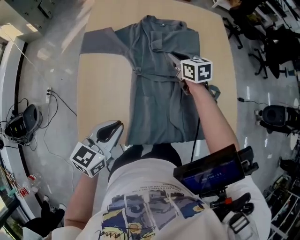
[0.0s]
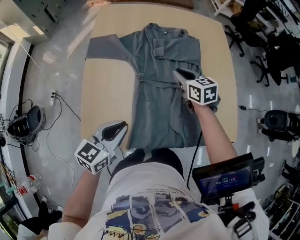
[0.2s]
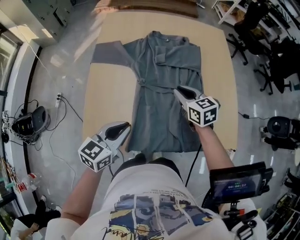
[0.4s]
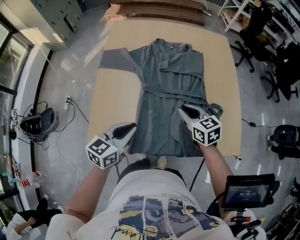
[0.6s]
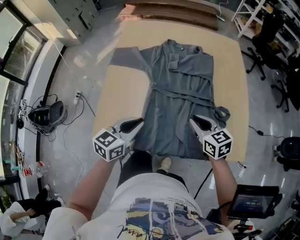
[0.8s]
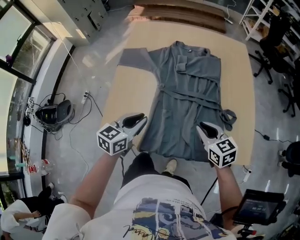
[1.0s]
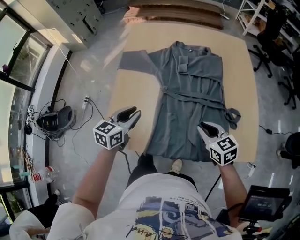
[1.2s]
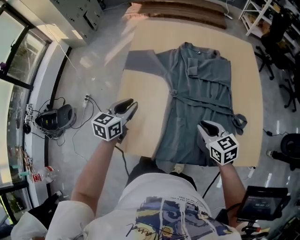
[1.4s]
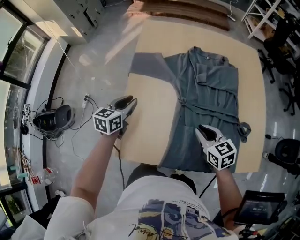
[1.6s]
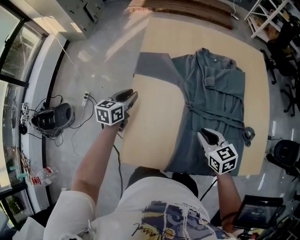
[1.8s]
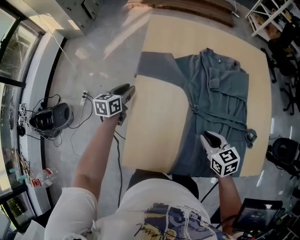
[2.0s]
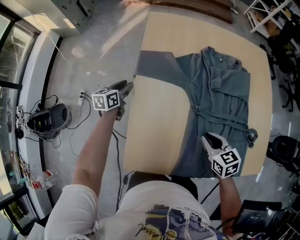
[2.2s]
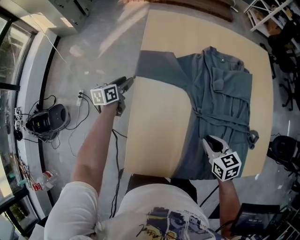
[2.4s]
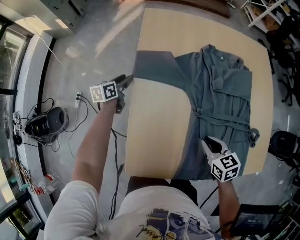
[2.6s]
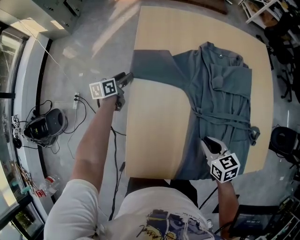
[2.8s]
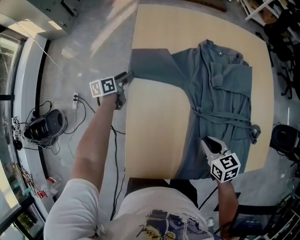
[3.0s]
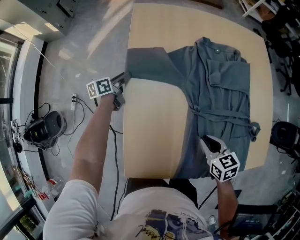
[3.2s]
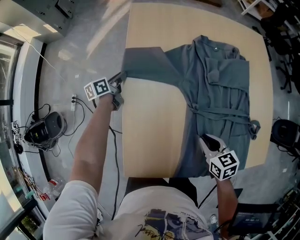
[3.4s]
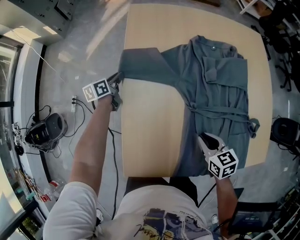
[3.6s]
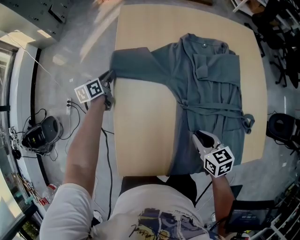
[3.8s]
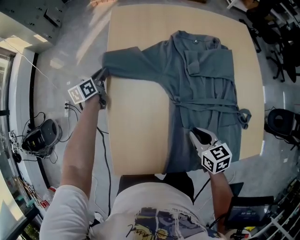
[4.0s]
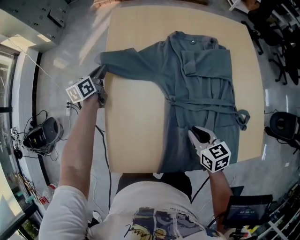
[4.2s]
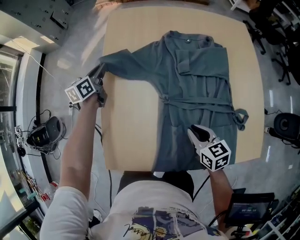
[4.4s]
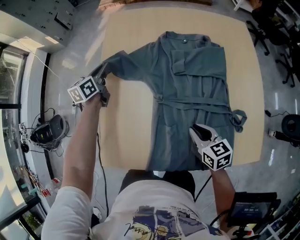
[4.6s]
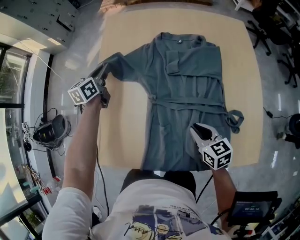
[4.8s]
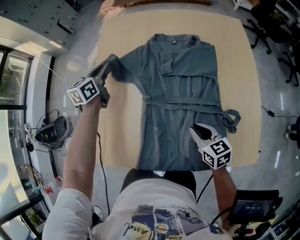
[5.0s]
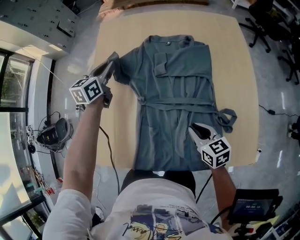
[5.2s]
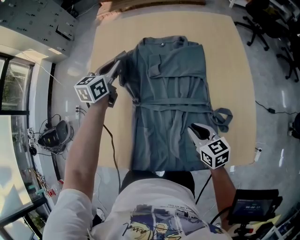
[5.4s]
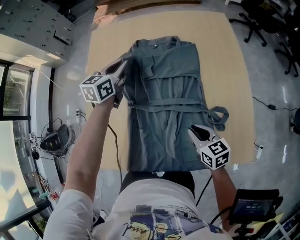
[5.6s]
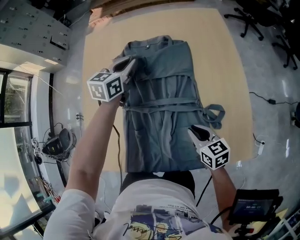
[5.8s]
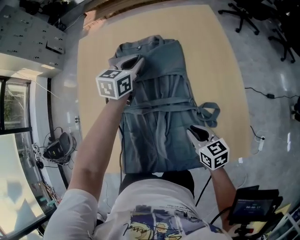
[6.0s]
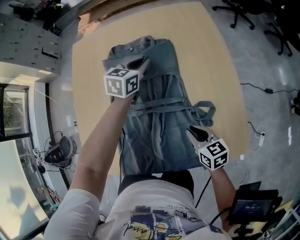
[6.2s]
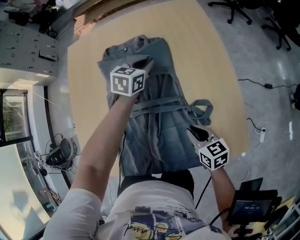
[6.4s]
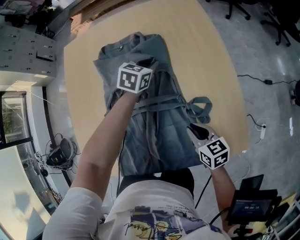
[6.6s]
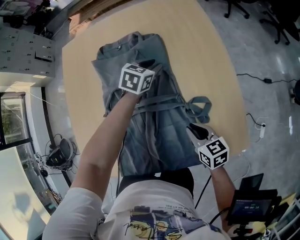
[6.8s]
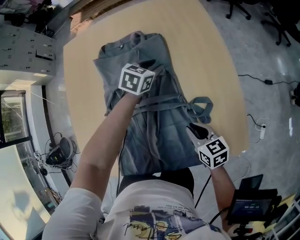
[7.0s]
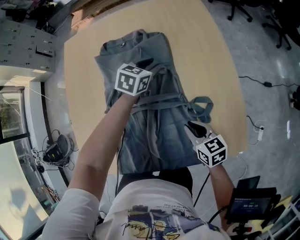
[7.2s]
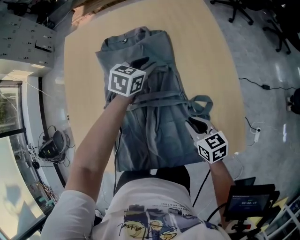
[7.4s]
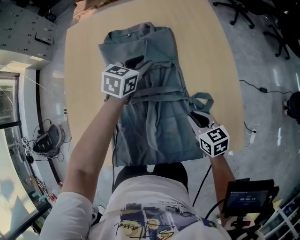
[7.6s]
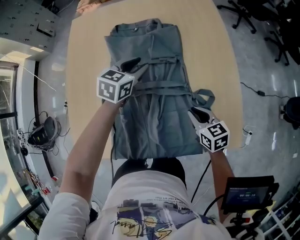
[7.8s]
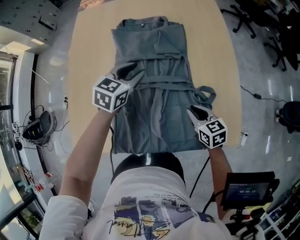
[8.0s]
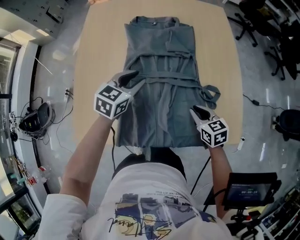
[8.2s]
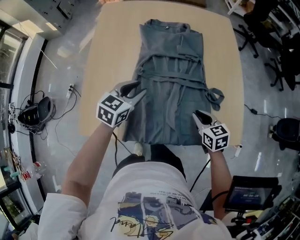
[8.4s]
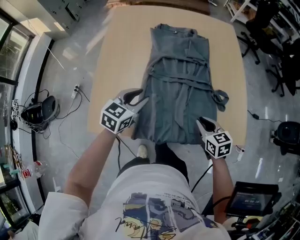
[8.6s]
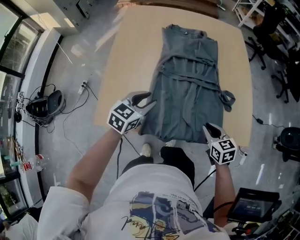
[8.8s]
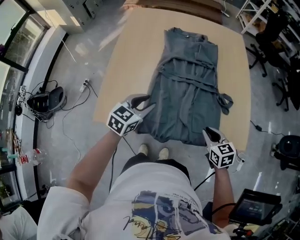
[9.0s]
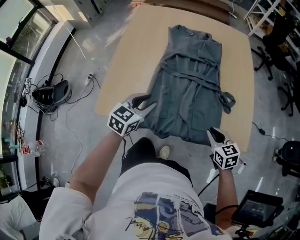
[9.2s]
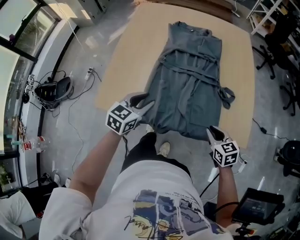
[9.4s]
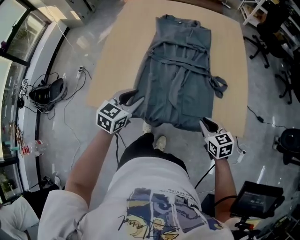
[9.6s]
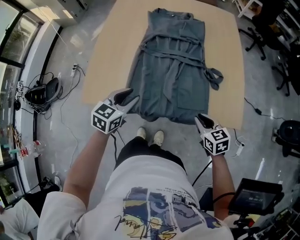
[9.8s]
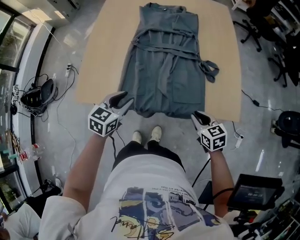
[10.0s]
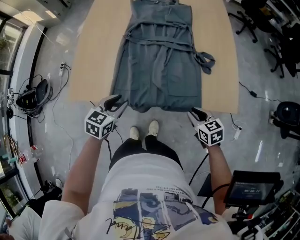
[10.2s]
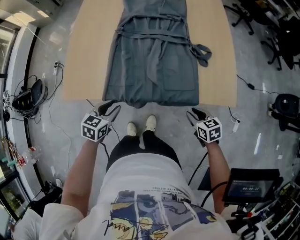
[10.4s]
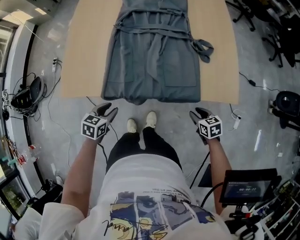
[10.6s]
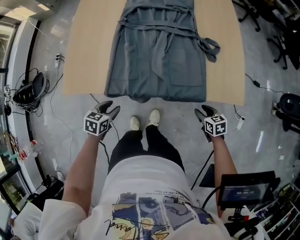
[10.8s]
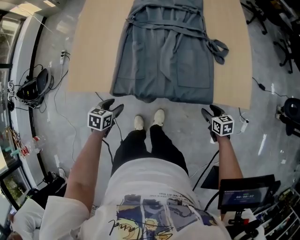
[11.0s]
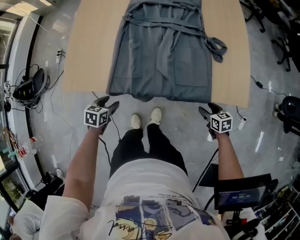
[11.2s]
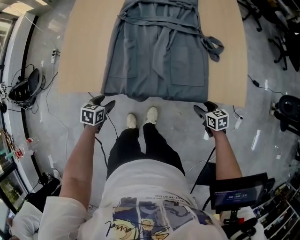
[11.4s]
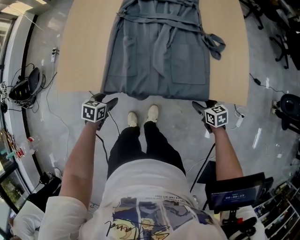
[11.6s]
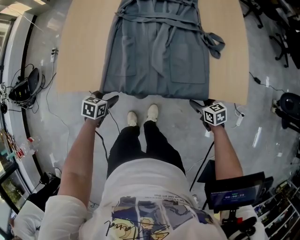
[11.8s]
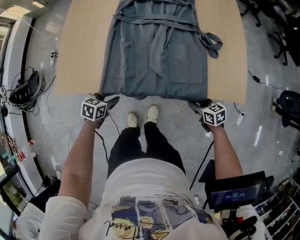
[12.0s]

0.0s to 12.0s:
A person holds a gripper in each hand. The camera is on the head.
0.0s to 1.6s: The right gripper is displaced backward by approximately 20 cm. The left gripper moves forward and to the left, roughly 25 cm.
1.6s to 3.0s: The left gripper heads forward and downward, covering roughly 25 cm, rotates some 30 degrees, and opens, while the right gripper shifts about 5 cm downward.
3.0s to 4.4s: The right gripper heads to the right, covering approximately 5 cm; the left gripper goes roughly 15 cm upward and to the right, changes its angle by approximately 20 degrees, and closes up.
4.4s to 6.0s: The left gripper is displaced to the right by approximately 40 cm, and swivels some 30 degrees; the right gripper moves to the right, about 20 cm.
6.0s to 7.6s: The left gripper opens.
7.6s to 9.0s: The left gripper goes approximately 35 cm backward and to the left. Meanwhile the right gripper travels backward and to the left by some 15 cm.
9.0s to 10.4s: The left gripper travels backward and downward by approximately 20 cm. Meanwhile the right gripper shifts roughly 20 cm backward, downward and to the right.
10.4s to 12.0s: Both grippers move downward, approximately 10 cm. The left gripper opens.

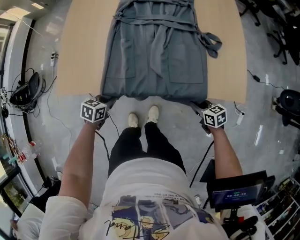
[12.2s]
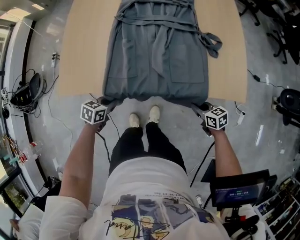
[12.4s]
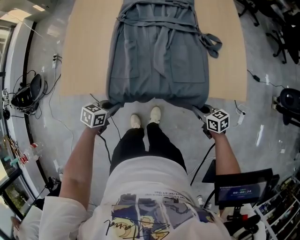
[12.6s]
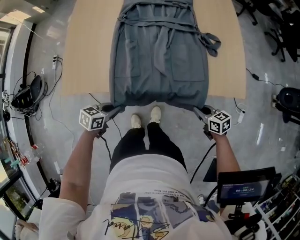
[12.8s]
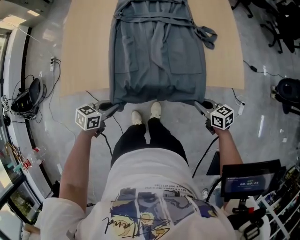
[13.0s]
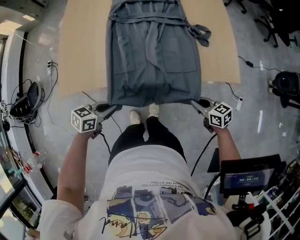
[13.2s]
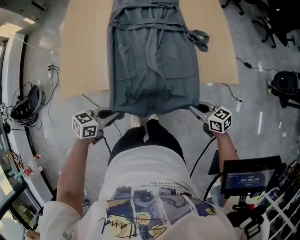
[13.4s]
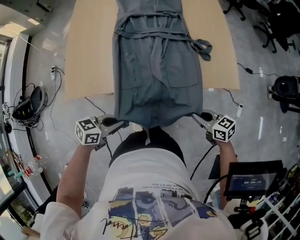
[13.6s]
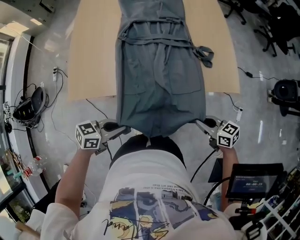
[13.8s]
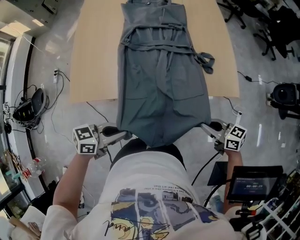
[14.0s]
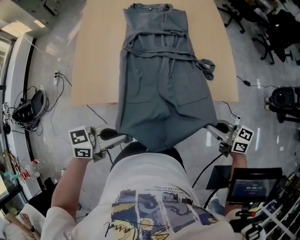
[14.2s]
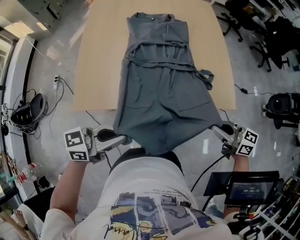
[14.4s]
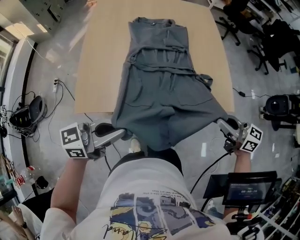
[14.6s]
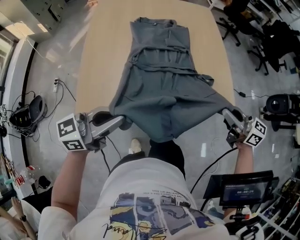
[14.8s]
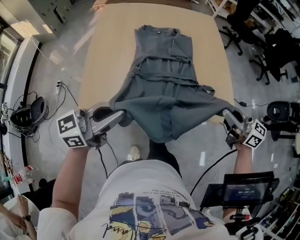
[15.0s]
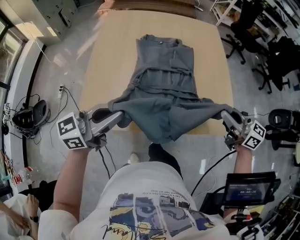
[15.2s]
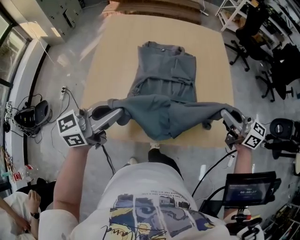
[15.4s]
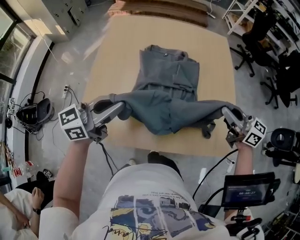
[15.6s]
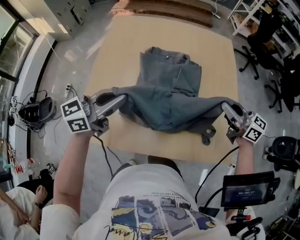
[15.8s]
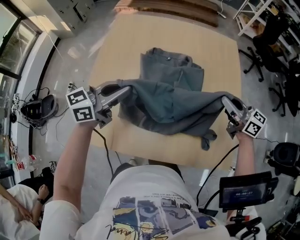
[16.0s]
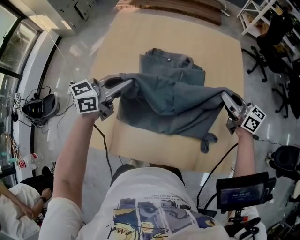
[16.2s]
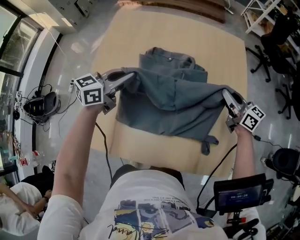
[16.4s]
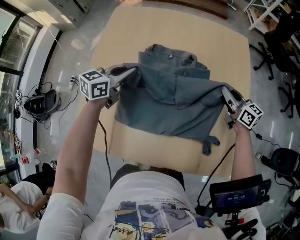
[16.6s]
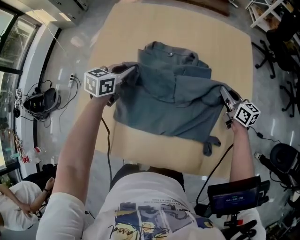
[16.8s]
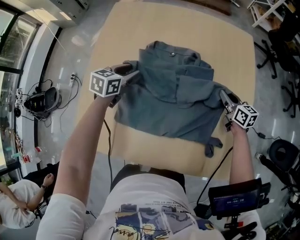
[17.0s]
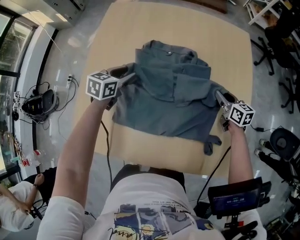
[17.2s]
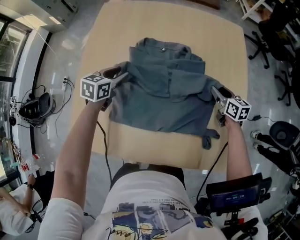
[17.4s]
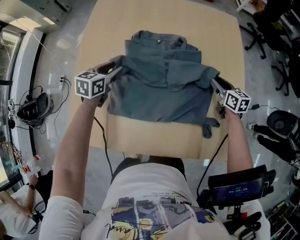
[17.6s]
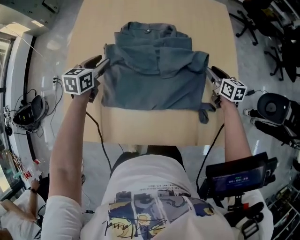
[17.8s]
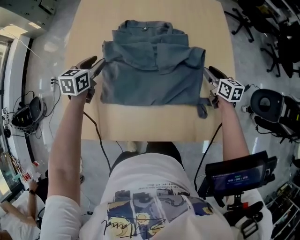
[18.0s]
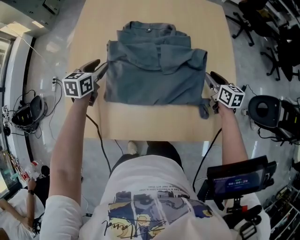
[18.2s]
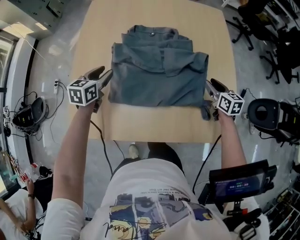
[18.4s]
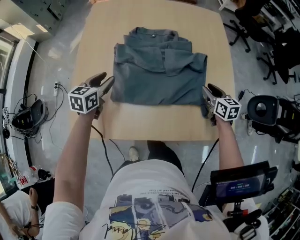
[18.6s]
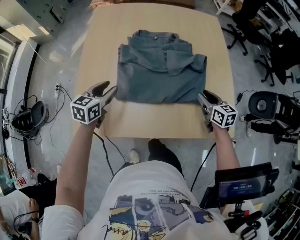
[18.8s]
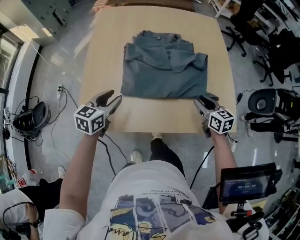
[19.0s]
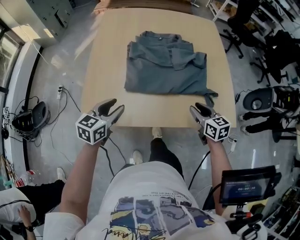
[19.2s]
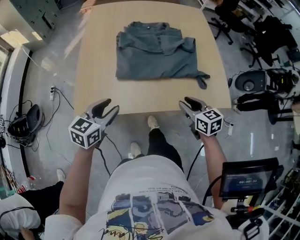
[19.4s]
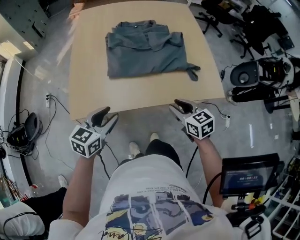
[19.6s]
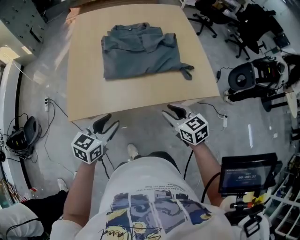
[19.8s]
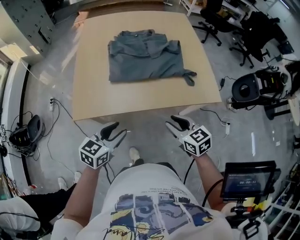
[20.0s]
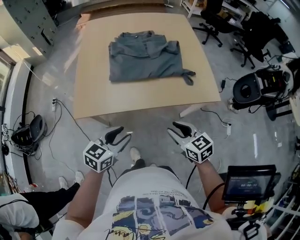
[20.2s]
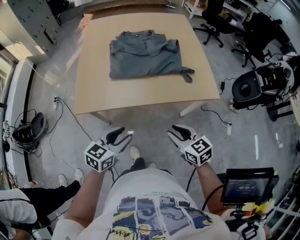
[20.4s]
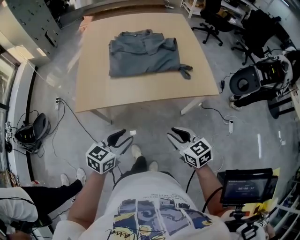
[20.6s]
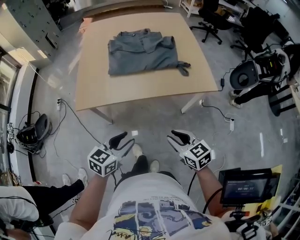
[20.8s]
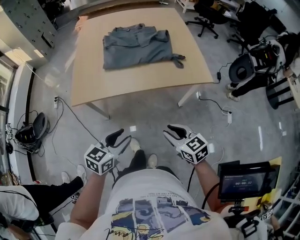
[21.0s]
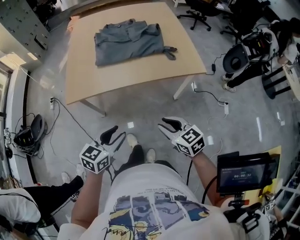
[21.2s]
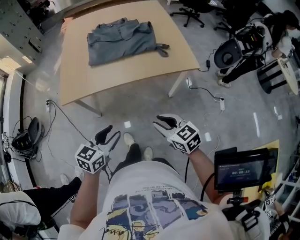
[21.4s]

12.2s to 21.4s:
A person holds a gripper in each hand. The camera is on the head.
12.2s to 13.8s: The grippers both shift upward by approximately 15 cm. The left gripper turns by about 30 degrees.
13.8s to 15.2s: The two grippers go roughly 25 cm upward. The right gripper swivels about 30 degrees. The left gripper swivels approximately 40 degrees.
15.2s to 16.8s: The grippers both shift forward and downward by some 40 cm. The left gripper tilts its fingers about 40 degrees downward.
16.8s to 18.4s: The right gripper moves backward, some 15 cm, rotates about 20 degrees, and opens its fingers; the left gripper moves backward and to the left, approximately 10 cm, and opens up.
18.4s to 19.8s: The left gripper moves backward, approximately 35 cm, and changes its angle by some 20 degrees. The right gripper heads backward and to the left, covering some 40 cm.
19.8s to 21.4s: The grippers both shift backward by about 20 cm.

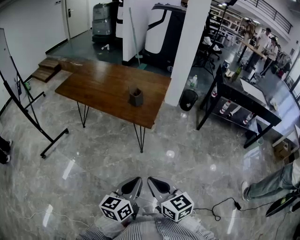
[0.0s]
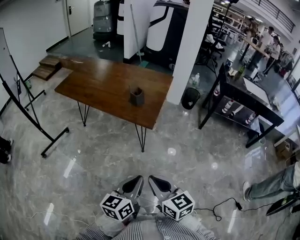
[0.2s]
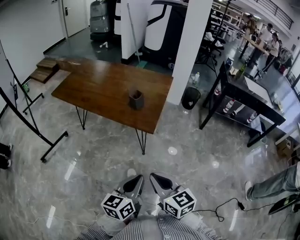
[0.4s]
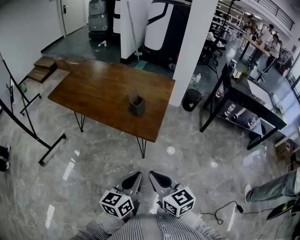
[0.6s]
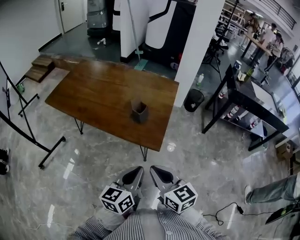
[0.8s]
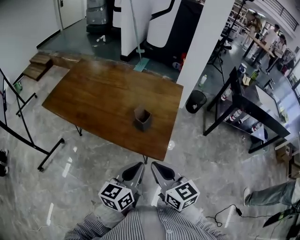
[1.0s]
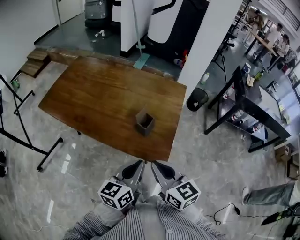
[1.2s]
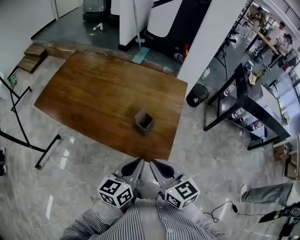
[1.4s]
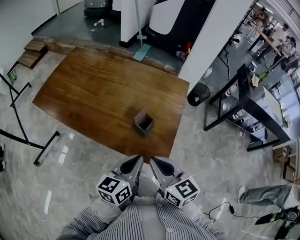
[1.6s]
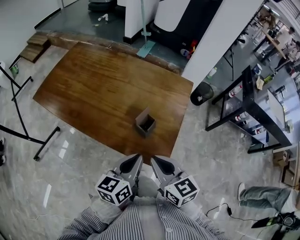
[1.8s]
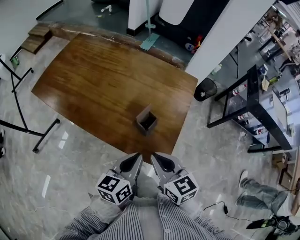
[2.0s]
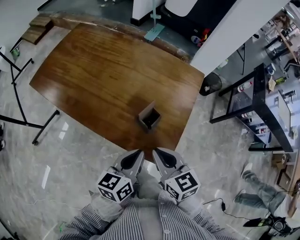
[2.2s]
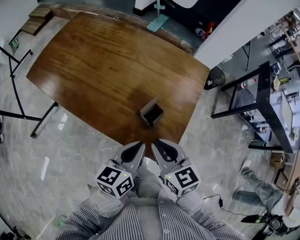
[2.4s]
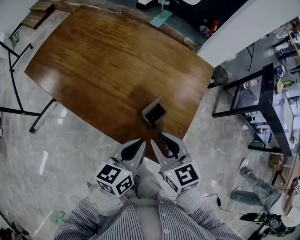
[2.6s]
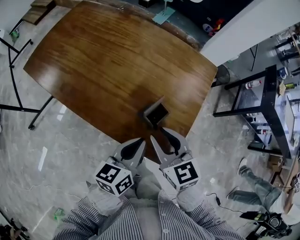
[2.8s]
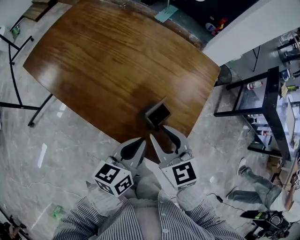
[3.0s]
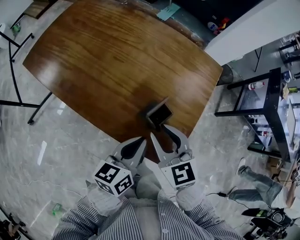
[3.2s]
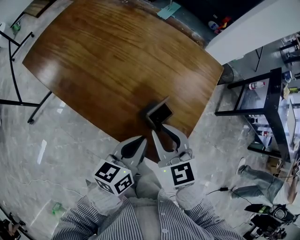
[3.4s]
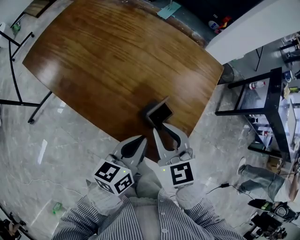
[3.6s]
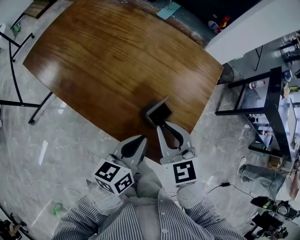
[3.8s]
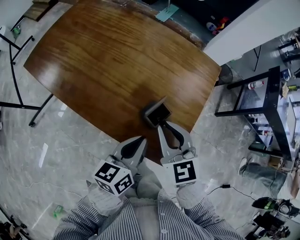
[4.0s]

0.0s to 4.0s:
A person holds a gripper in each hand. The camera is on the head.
0.0s to 1.4s: The grippers both shift forward by roughly 40 cm.
1.4s to 2.6s: The grippers both shift forward and downward by roughly 10 cm. The right gripper opens its fingers.
2.6s to 4.0s: The right gripper travels forward by some 5 cm.
